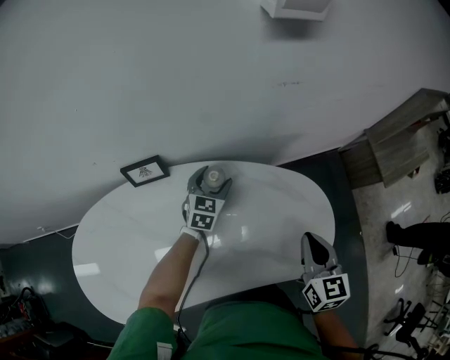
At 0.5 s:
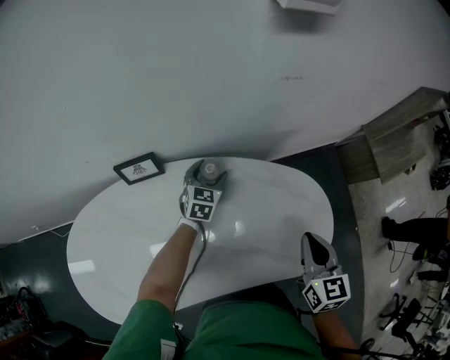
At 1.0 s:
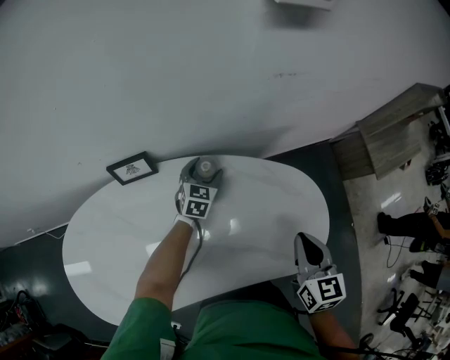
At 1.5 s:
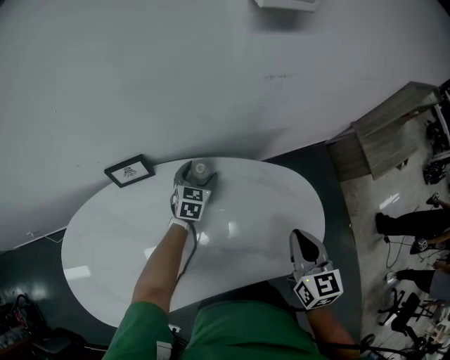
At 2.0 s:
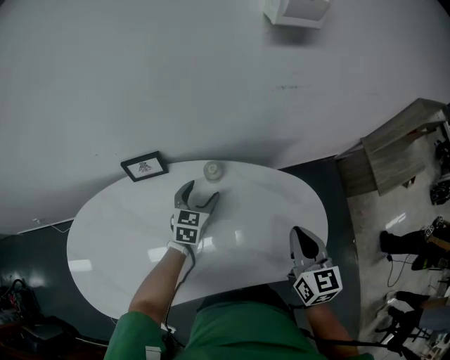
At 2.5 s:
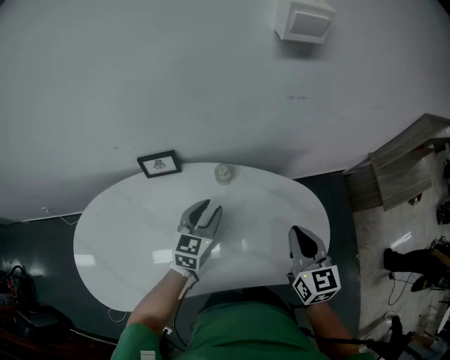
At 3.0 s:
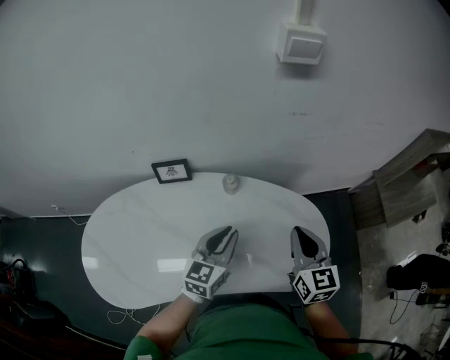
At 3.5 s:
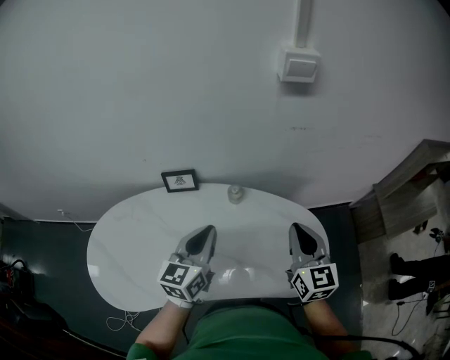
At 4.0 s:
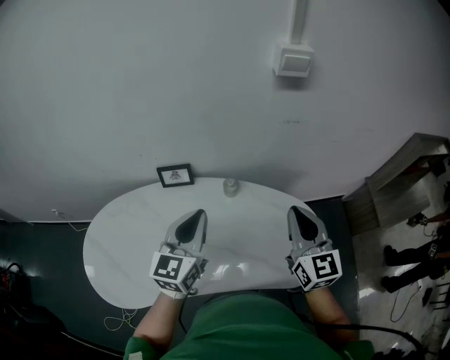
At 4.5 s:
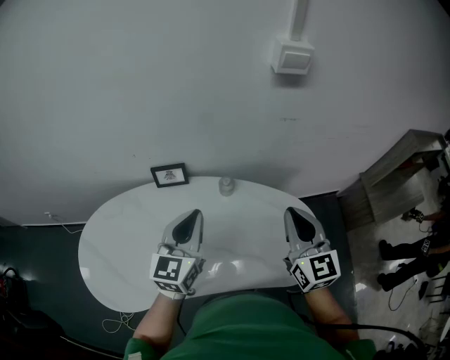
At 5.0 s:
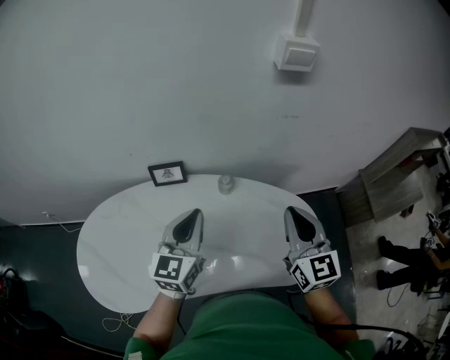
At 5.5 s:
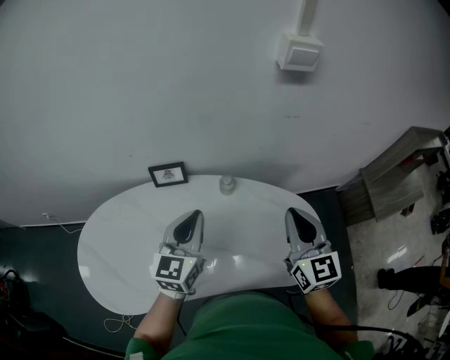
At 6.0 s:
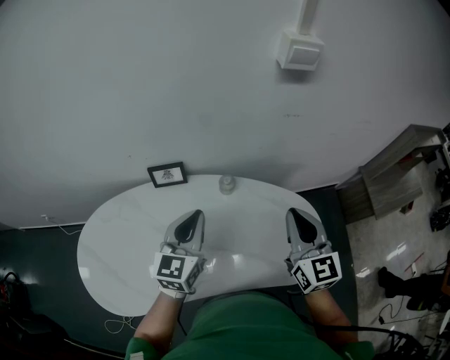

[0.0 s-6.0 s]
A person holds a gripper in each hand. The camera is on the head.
0.0 to 2.0 s: The left gripper moves backward, roughly 5 cm.
2.0 to 4.0 s: The right gripper moves upward, about 15 cm, and turns by about 20 degrees, while the left gripper is displaced upward and backward by approximately 30 cm, swivels roughly 30 degrees, and closes up.
4.0 to 6.0 s: The left gripper changes place by some 5 cm.

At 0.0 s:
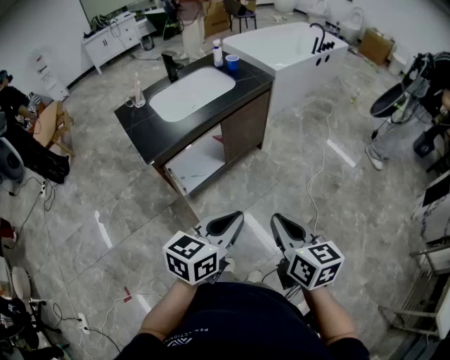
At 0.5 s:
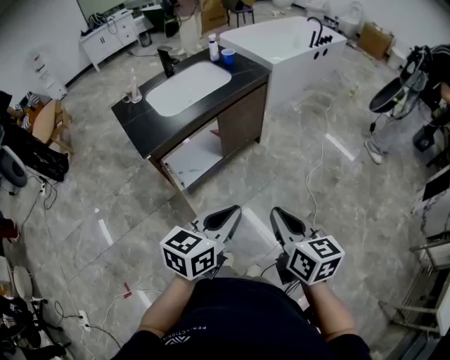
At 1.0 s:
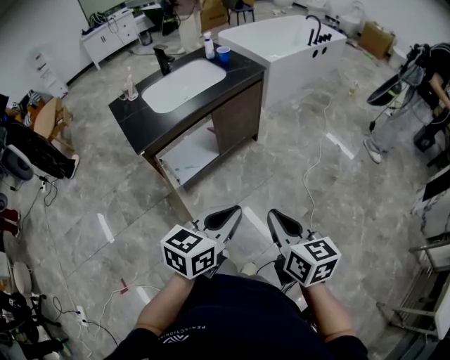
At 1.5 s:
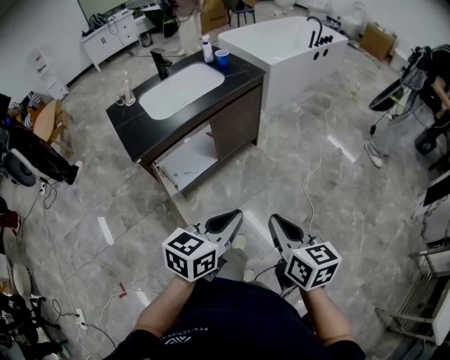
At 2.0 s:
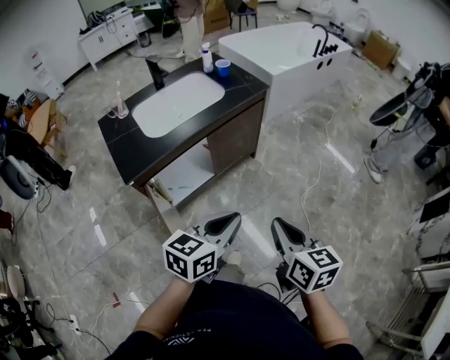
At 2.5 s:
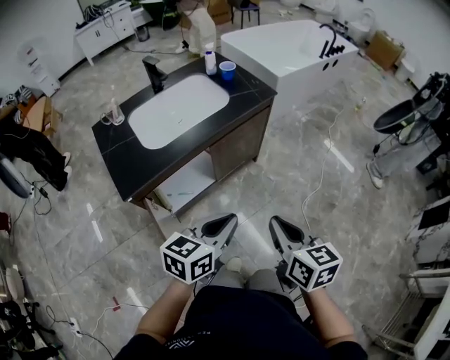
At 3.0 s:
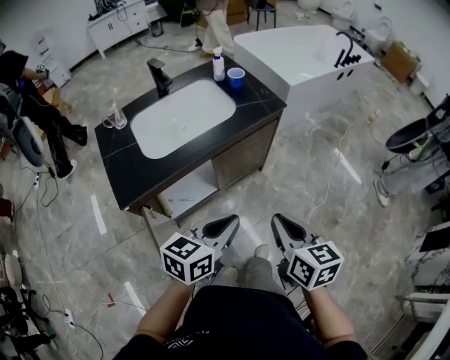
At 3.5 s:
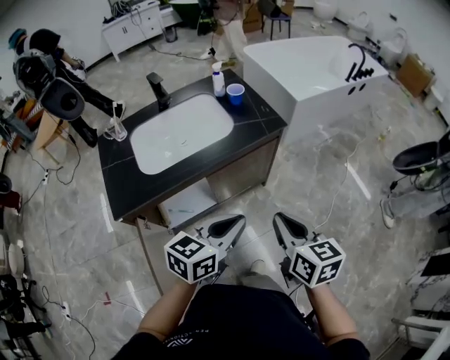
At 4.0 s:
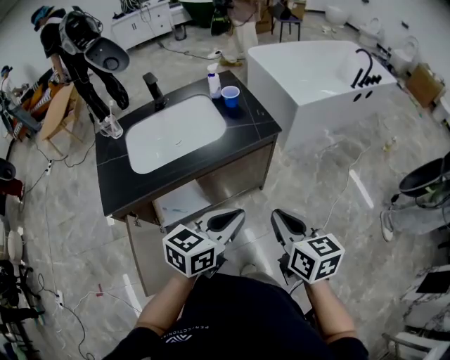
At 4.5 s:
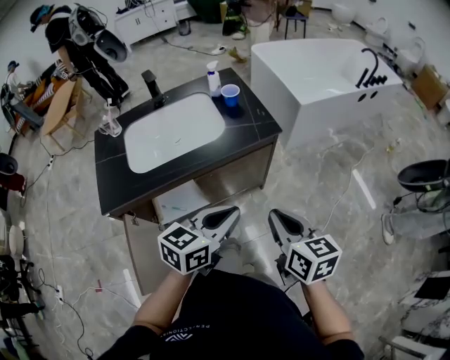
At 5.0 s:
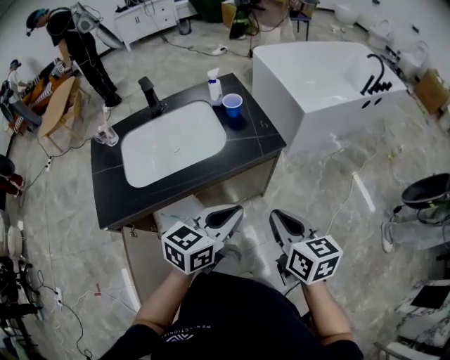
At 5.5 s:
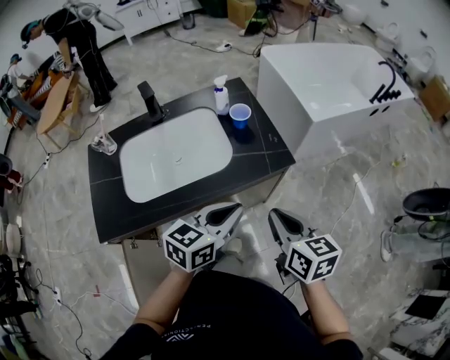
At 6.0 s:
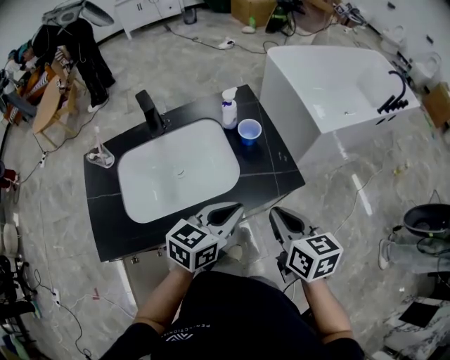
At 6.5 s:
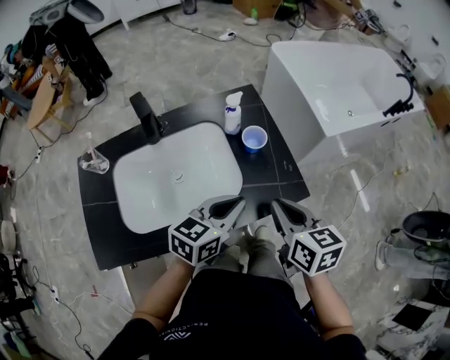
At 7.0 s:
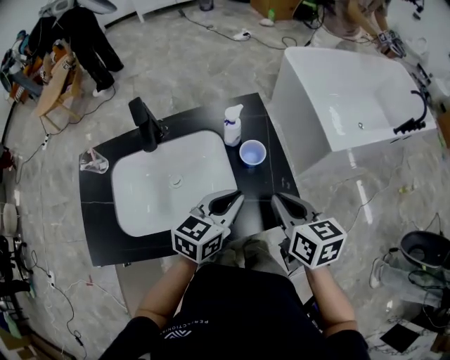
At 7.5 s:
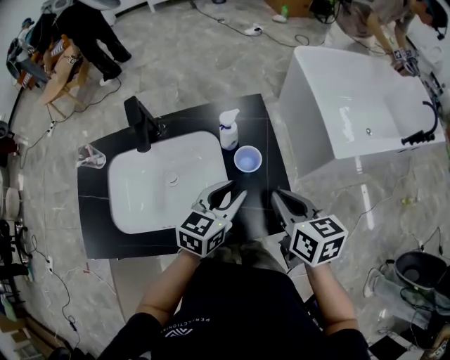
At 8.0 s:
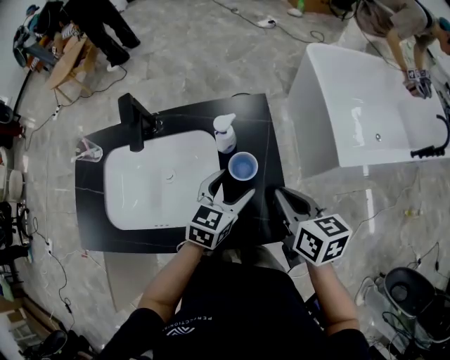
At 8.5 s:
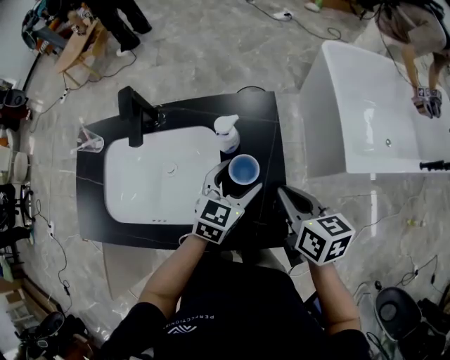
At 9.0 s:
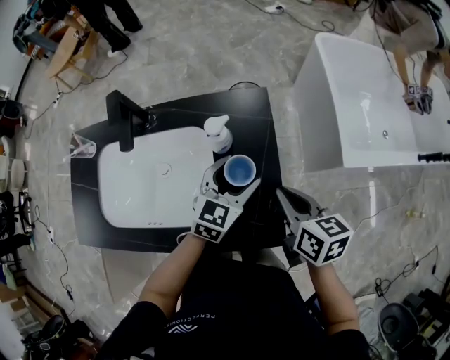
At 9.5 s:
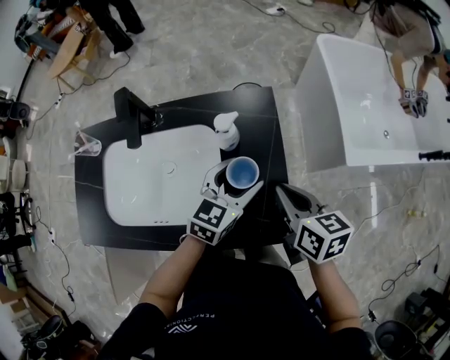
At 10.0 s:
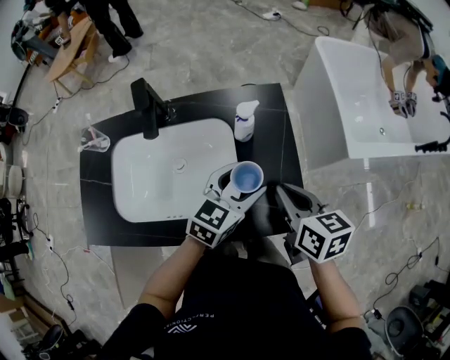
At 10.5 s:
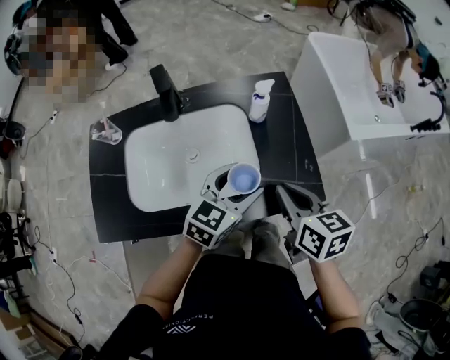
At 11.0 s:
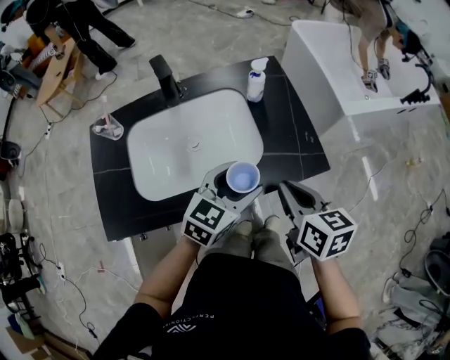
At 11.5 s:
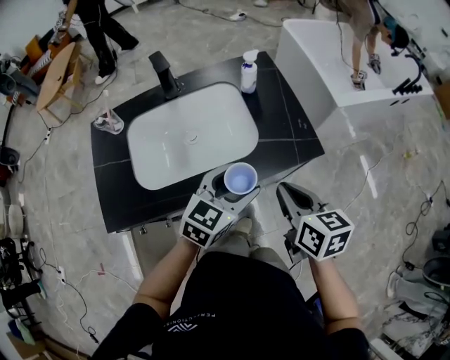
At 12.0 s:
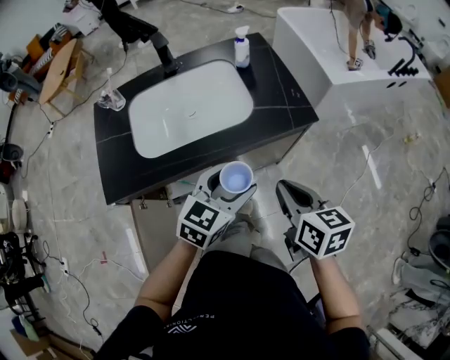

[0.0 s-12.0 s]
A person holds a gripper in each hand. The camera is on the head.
0.0 to 2.0 s: The left gripper travels forward by about 10 cm, while the right gripper is displaced forward and to the right by some 15 cm.
2.0 to 4.0 s: Both grippers travel together forward, approximately 30 cm.
4.0 to 6.0 s: Both grippers move forward, approximately 25 cm.
6.0 to 8.0 s: Both grippers travel together forward, approximately 20 cm. The left gripper changes its angle by some 30 degrees, and opens up.
8.0 to 10.0 s: The right gripper shifts by about 5 cm.
10.0 to 12.0 s: The grippers both shift backward by about 30 cm.

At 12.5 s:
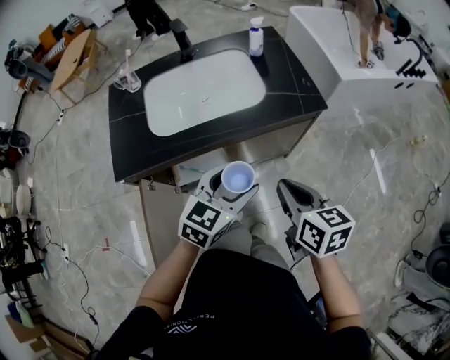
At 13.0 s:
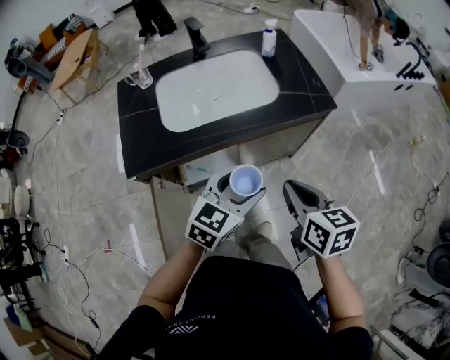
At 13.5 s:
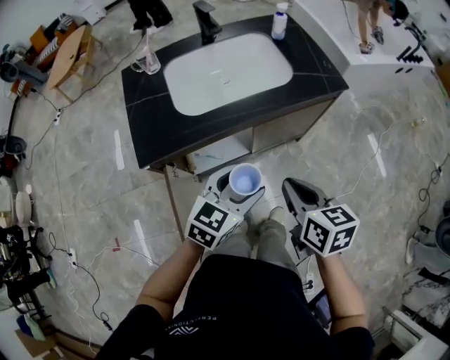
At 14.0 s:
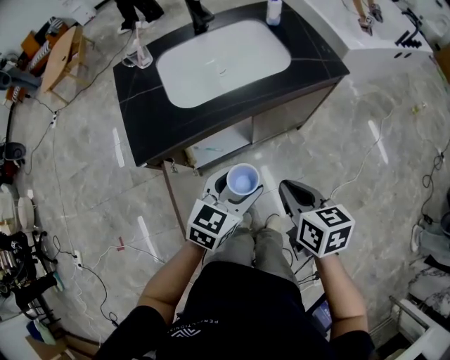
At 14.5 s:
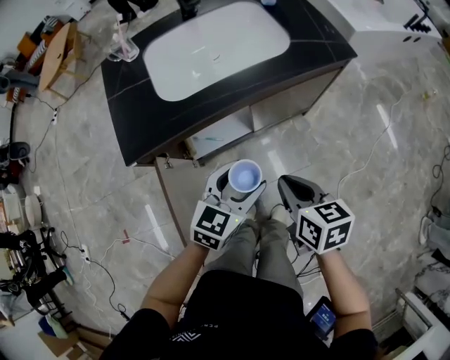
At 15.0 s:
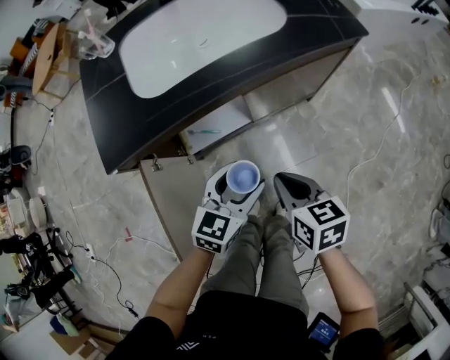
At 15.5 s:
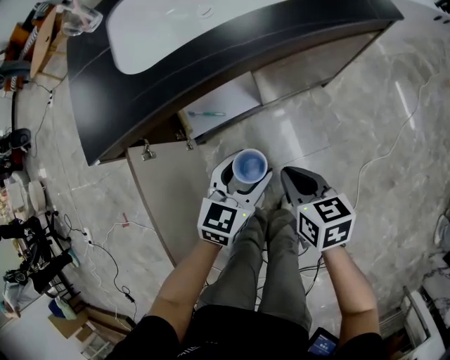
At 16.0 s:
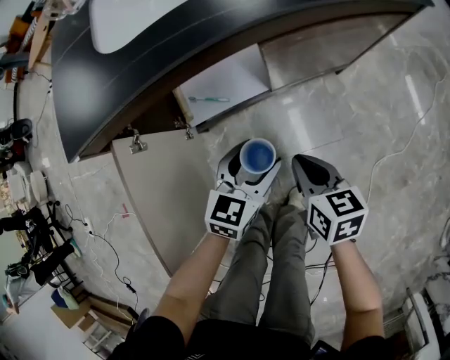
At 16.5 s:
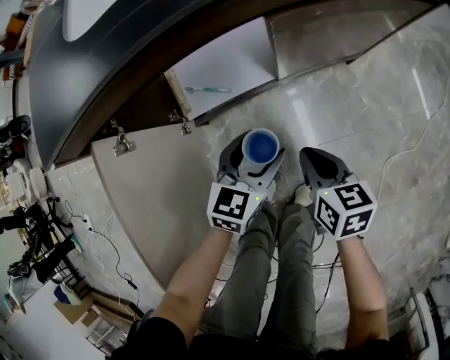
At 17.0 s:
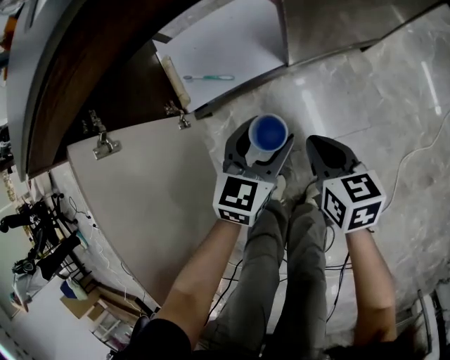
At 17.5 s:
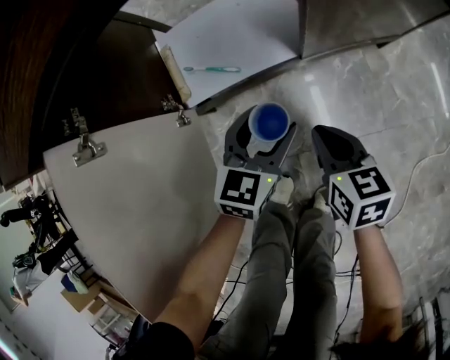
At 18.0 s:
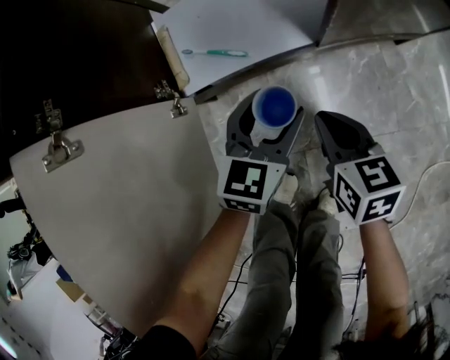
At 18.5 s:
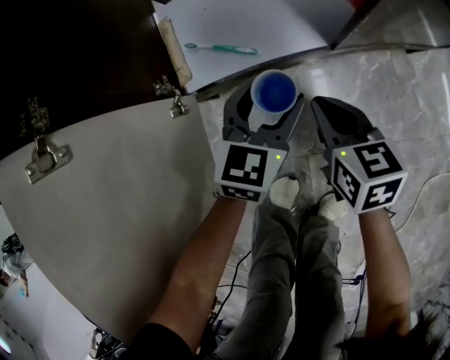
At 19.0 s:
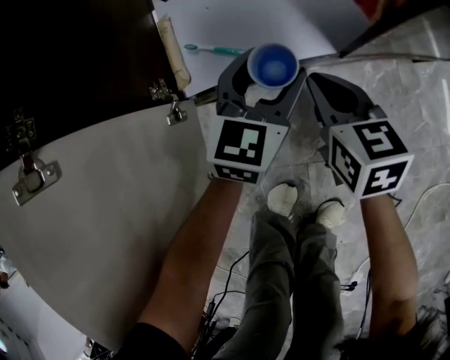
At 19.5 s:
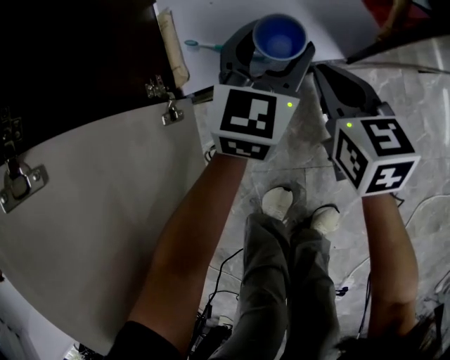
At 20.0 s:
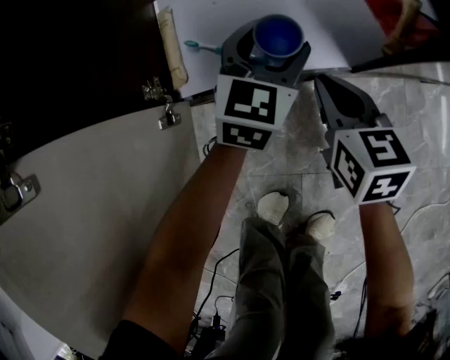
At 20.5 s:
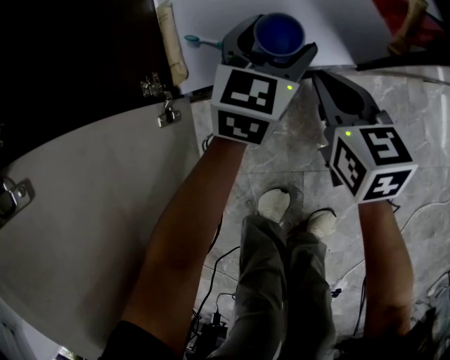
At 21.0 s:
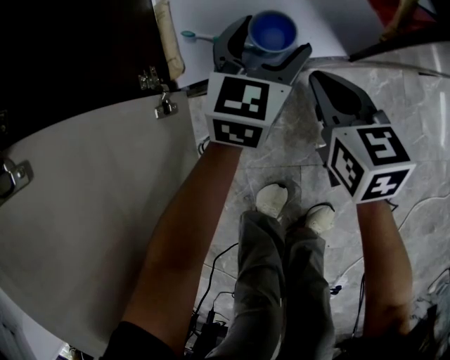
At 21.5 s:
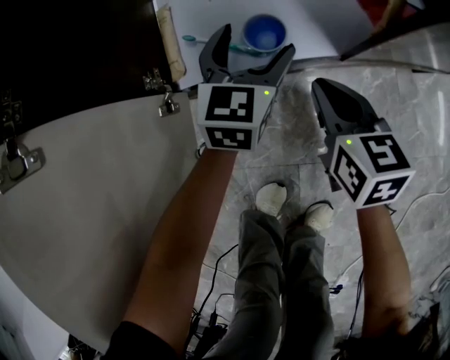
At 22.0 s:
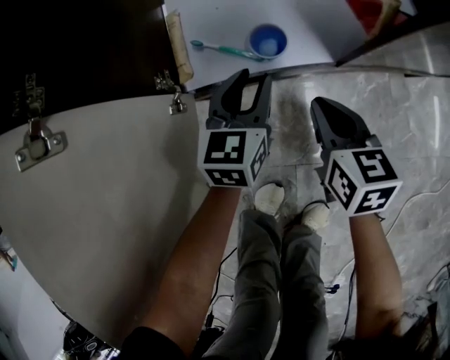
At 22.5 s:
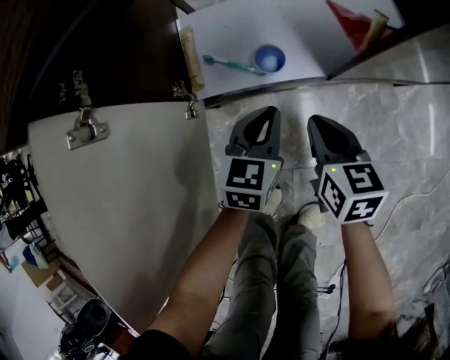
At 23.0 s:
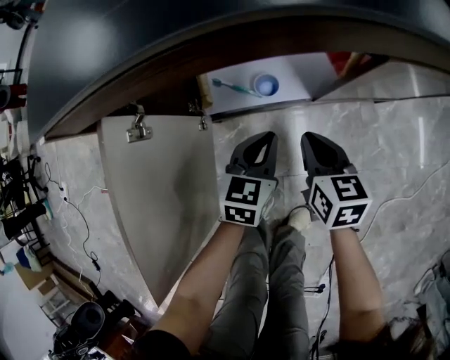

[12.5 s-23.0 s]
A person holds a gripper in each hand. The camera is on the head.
12.5 to 14.5 s: The grippers both shift to the left, downward and backward by approximately 15 cm.
14.5 to 16.5 s: The grippers both shift downward by about 30 cm.
16.5 to 19.0 s: Both grippers move downward, forward and to the left, some 25 cm.
19.0 to 21.0 s: The left gripper heads forward, covering about 5 cm.
21.0 to 23.0 s: The left gripper heads backward and upward, covering roughly 20 cm, and closes its fingers, while the right gripper is displaced upward and backward by about 15 cm.
